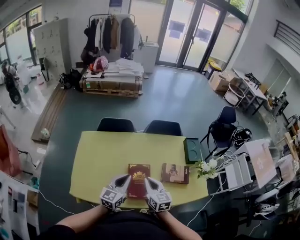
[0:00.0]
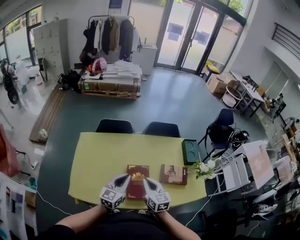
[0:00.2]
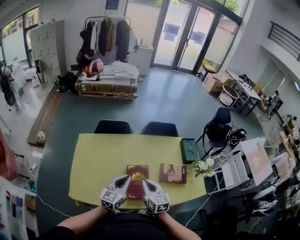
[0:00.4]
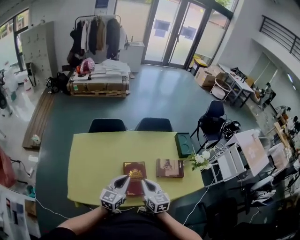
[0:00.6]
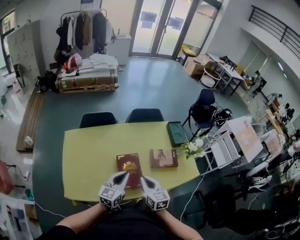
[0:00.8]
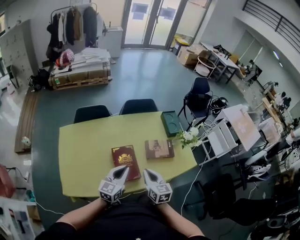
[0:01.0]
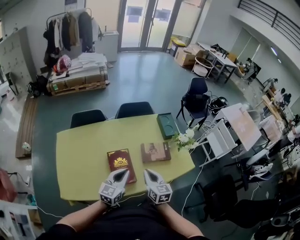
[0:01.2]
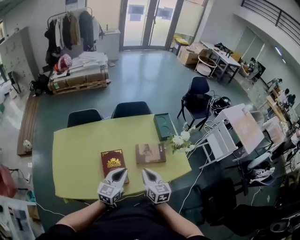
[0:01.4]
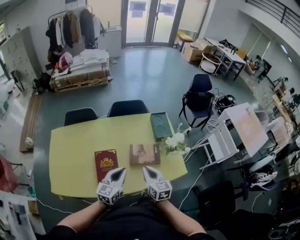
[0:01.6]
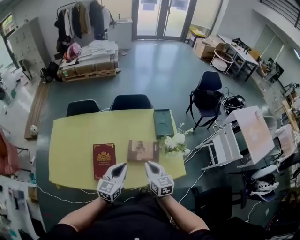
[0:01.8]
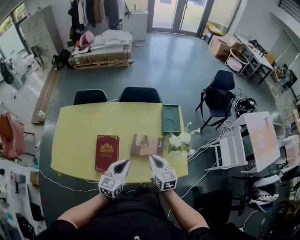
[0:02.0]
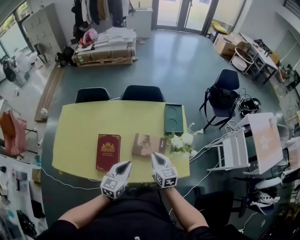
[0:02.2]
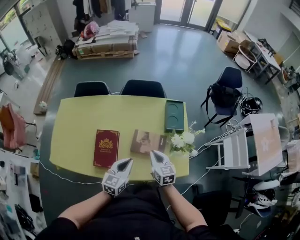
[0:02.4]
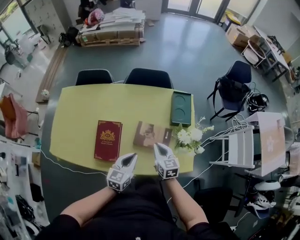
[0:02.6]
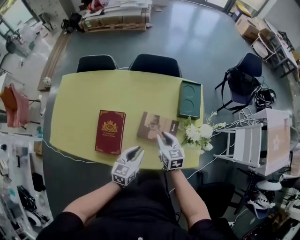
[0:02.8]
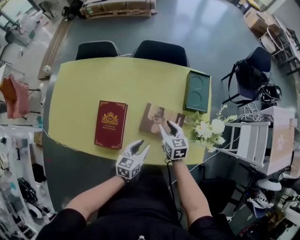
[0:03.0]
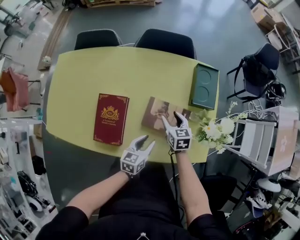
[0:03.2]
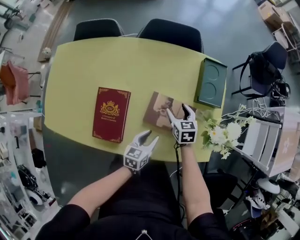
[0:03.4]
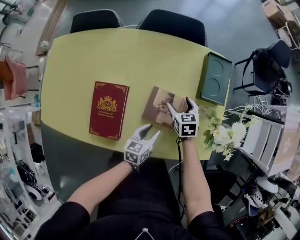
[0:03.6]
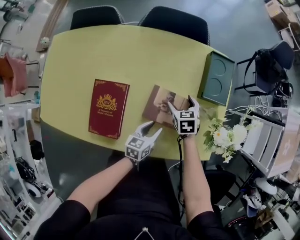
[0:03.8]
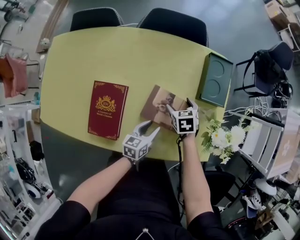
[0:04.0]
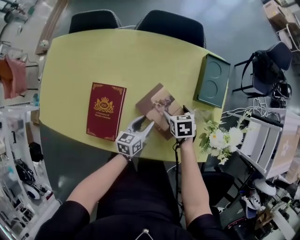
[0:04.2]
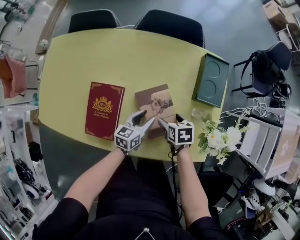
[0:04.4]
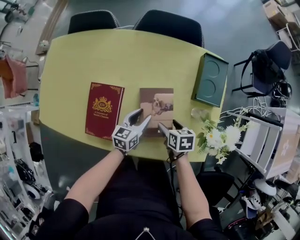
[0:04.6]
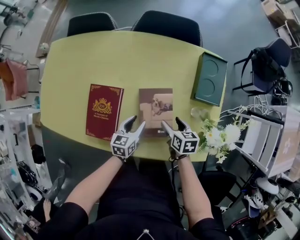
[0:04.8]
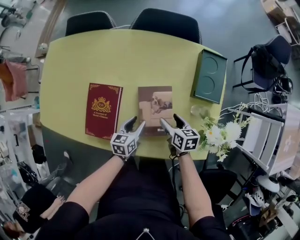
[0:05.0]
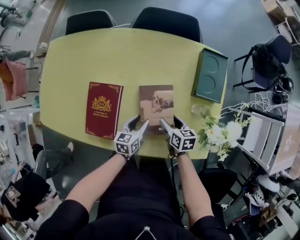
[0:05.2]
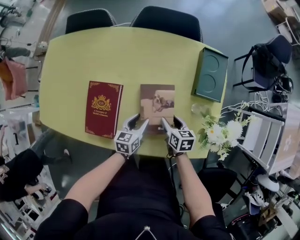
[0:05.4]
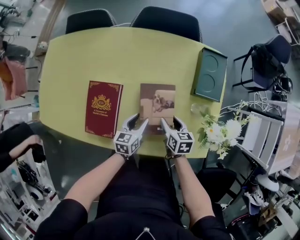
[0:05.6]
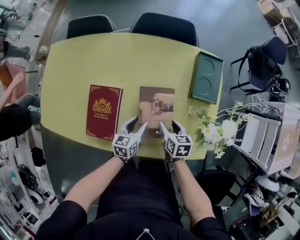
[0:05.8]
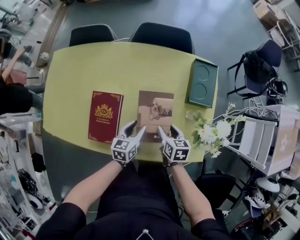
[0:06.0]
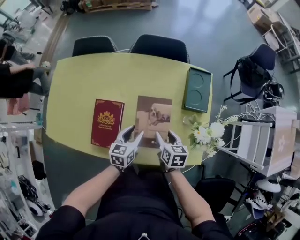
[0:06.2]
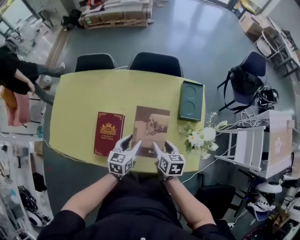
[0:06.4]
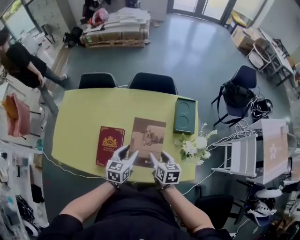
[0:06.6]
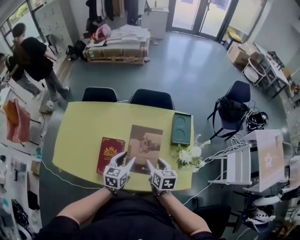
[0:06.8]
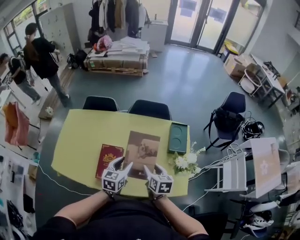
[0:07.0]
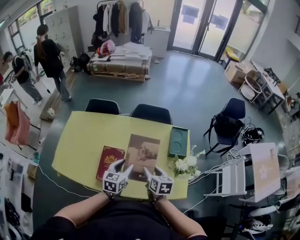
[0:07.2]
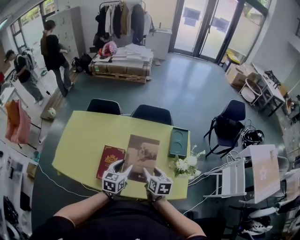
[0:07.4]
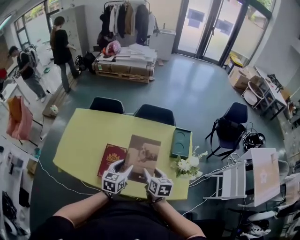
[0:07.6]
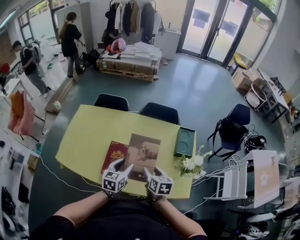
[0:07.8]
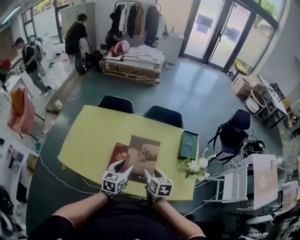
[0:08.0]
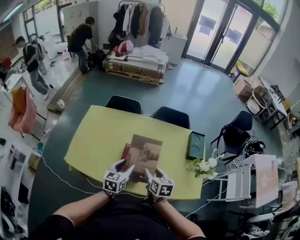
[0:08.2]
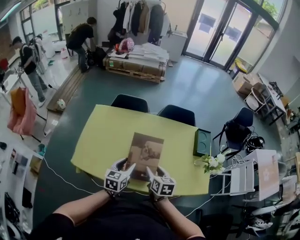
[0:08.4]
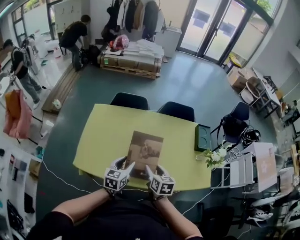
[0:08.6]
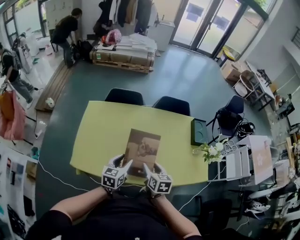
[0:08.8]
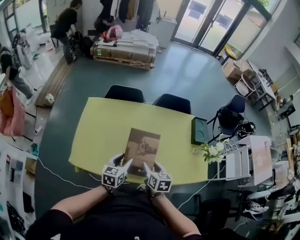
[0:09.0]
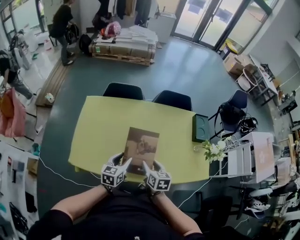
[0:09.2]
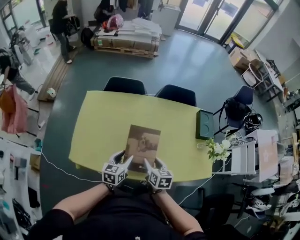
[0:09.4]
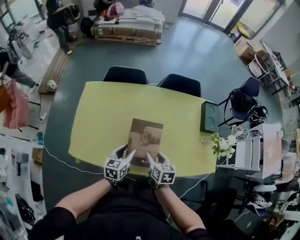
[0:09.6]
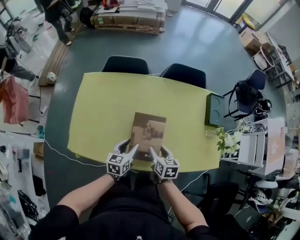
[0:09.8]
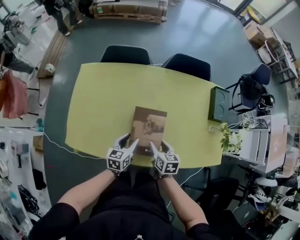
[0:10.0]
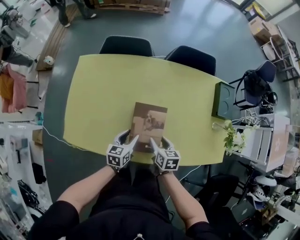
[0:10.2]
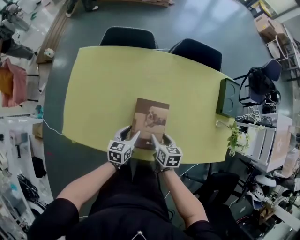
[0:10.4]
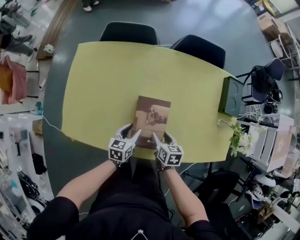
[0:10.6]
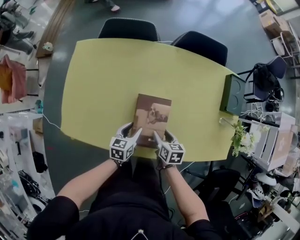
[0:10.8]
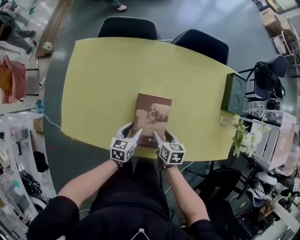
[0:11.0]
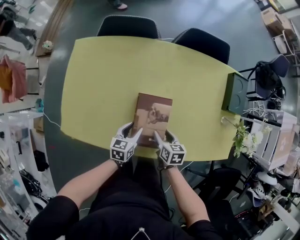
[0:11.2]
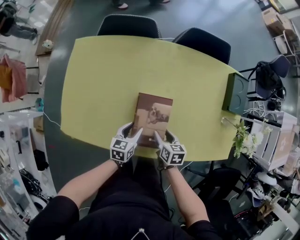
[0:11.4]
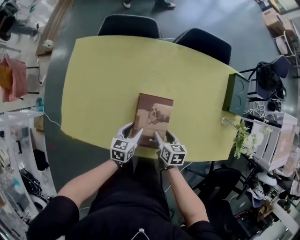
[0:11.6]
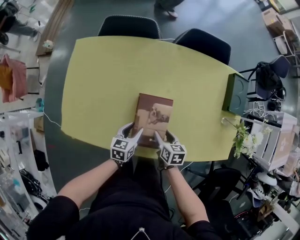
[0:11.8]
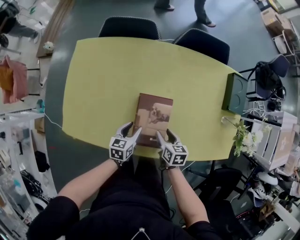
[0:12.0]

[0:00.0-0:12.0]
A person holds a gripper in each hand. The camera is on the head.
0:00.0 to 0:01.6: The grippers both shift to the right by some 25 cm.
0:01.6 to 0:03.0: The left gripper travels downward and to the right by approximately 25 cm, swivels roughly 30 degrees, and opens up. Meanwhile the right gripper is displaced downward and forward by some 25 cm, swivels about 20 degrees, and opens up.
0:03.0 to 0:04.4: The left gripper moves downward and forward, about 15 cm. Meanwhile the right gripper heads downward, covering roughly 10 cm, rotates about 30 degrees, and opens its fingers.
0:04.4 to 0:06.0: The left gripper moves roughly 5 cm, while the right gripper is displaced upward by approximately 5 cm, changes its angle by about 20 degrees, and closes its fingers.
0:06.0 to 0:07.6: The grippers both shift upward by some 25 cm.
0:07.6 to 0:09.0: The two grippers go some 30 cm to the left.
0:09.0 to 0:10.4: The two grippers go some 20 cm downward.
0:10.4 to 0:12.0: The grippers move only a little.

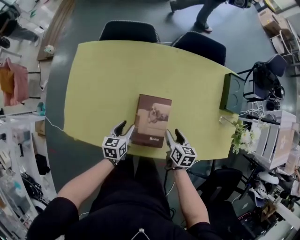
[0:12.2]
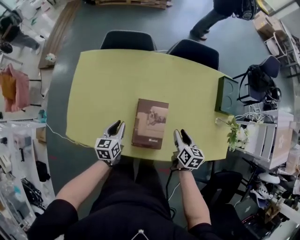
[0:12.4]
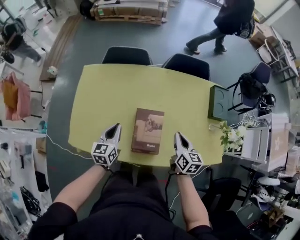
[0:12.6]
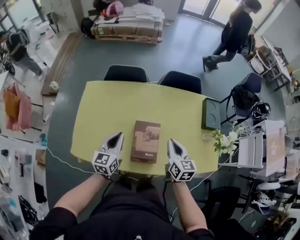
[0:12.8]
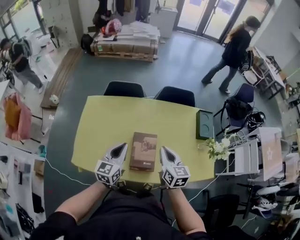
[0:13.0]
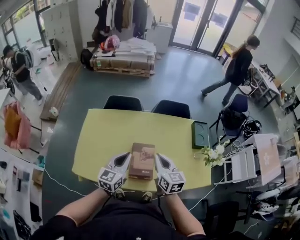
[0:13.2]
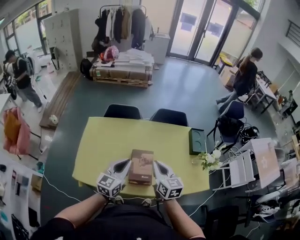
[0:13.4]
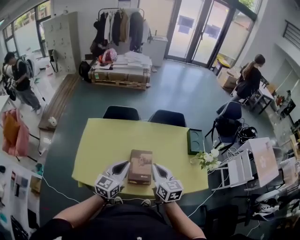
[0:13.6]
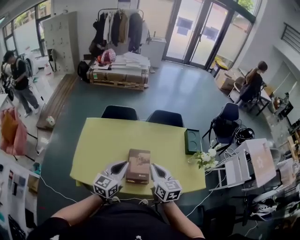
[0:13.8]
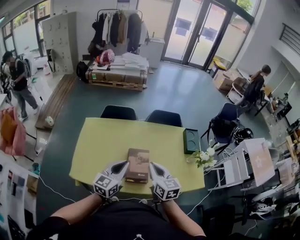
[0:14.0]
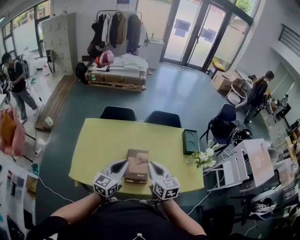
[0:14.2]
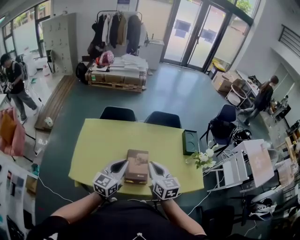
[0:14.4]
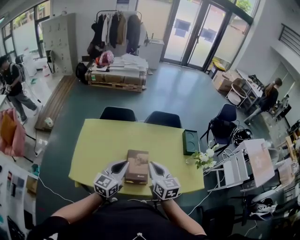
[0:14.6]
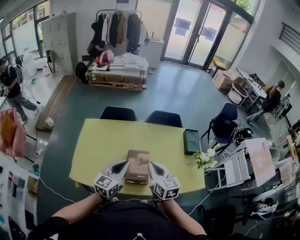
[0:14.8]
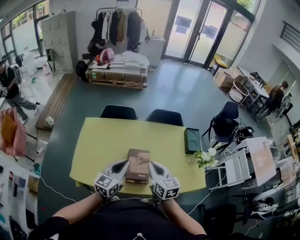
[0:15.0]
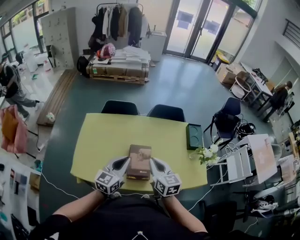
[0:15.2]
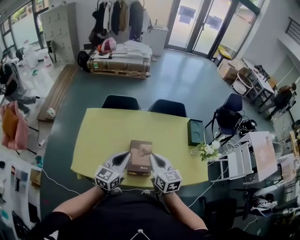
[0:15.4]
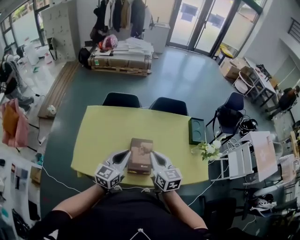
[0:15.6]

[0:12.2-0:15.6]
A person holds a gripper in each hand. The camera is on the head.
0:12.2 to 0:13.8: Both grippers move upward, roughly 35 cm. The right gripper swivels approximately 30 degrees, and closes up. Meanwhile the left gripper tilts its fingers about 30 degrees upward, and closes up.
0:13.8 to 0:15.6: The grippers move only a little.

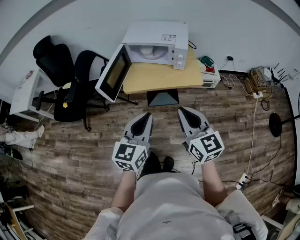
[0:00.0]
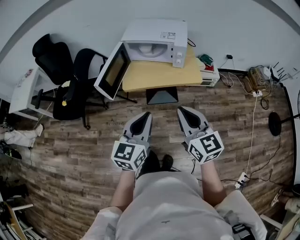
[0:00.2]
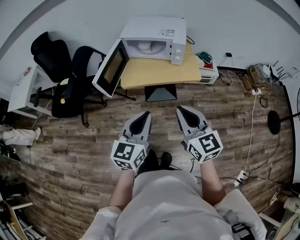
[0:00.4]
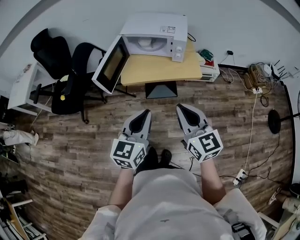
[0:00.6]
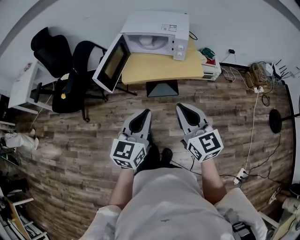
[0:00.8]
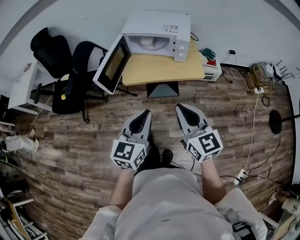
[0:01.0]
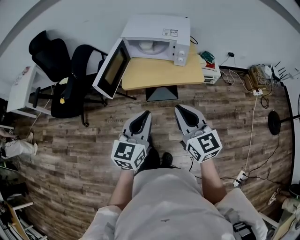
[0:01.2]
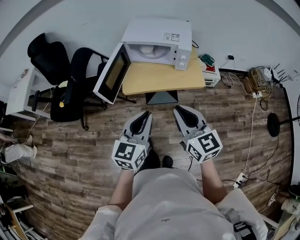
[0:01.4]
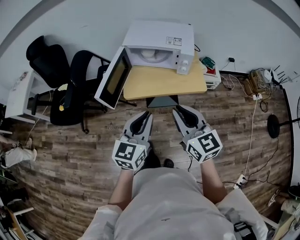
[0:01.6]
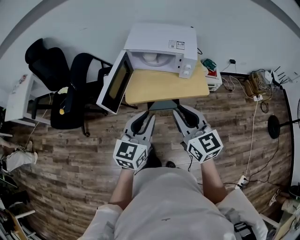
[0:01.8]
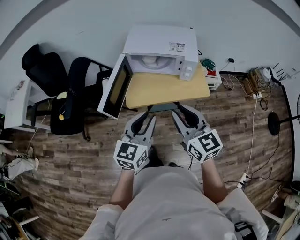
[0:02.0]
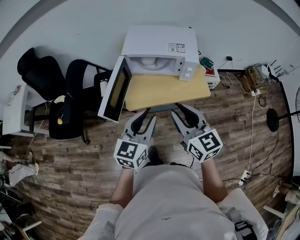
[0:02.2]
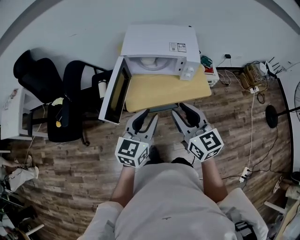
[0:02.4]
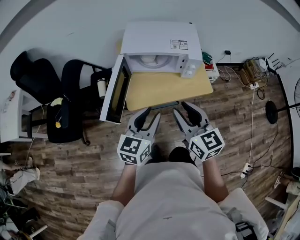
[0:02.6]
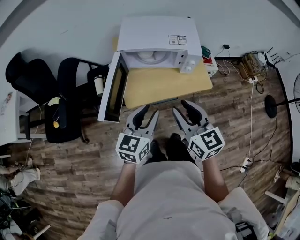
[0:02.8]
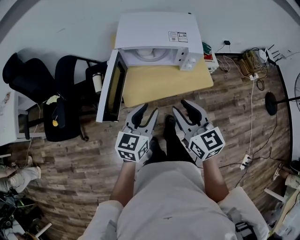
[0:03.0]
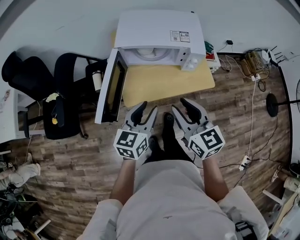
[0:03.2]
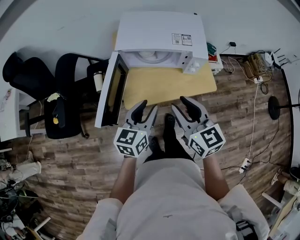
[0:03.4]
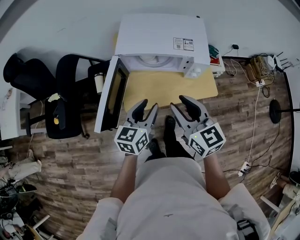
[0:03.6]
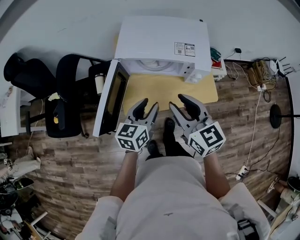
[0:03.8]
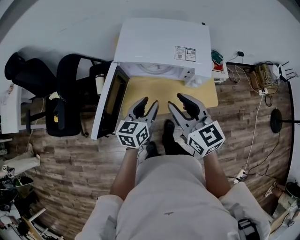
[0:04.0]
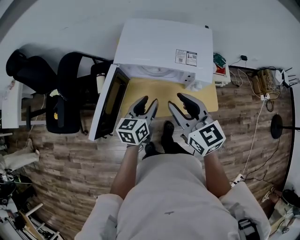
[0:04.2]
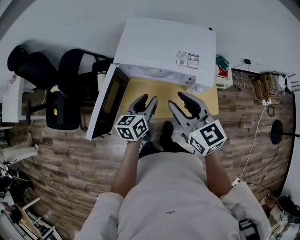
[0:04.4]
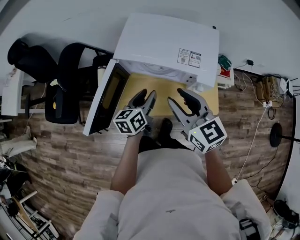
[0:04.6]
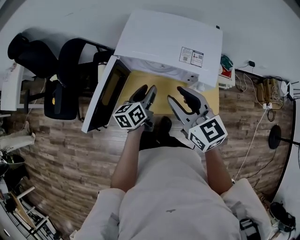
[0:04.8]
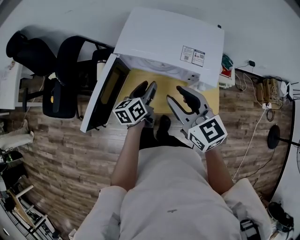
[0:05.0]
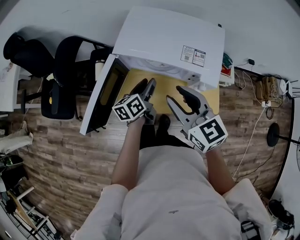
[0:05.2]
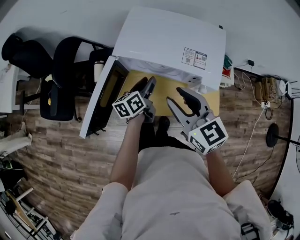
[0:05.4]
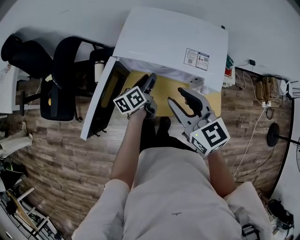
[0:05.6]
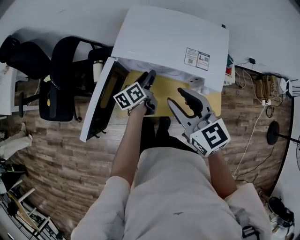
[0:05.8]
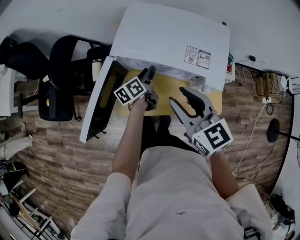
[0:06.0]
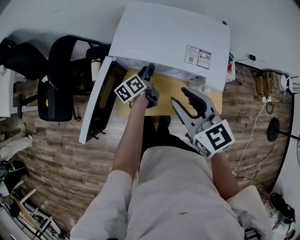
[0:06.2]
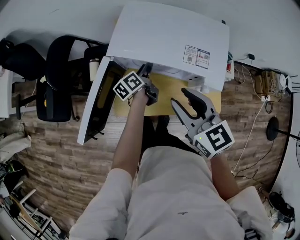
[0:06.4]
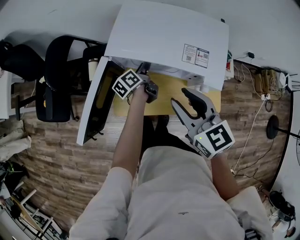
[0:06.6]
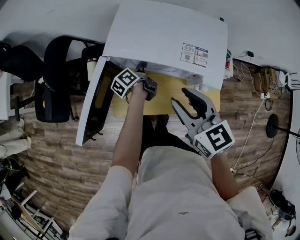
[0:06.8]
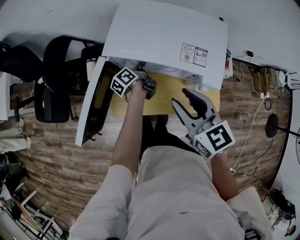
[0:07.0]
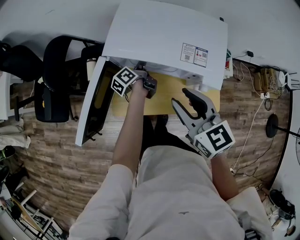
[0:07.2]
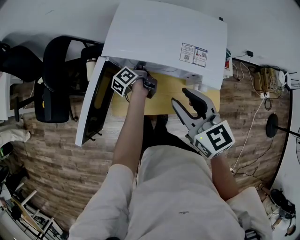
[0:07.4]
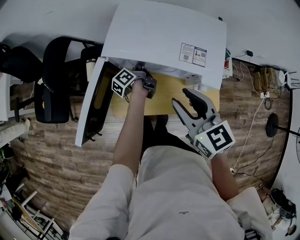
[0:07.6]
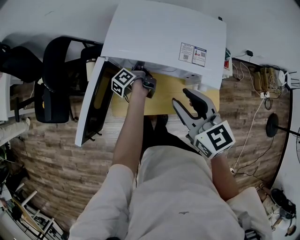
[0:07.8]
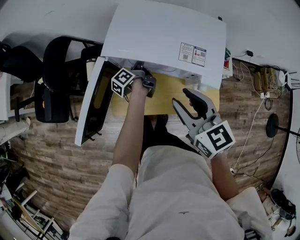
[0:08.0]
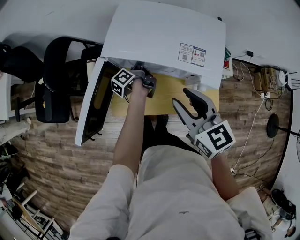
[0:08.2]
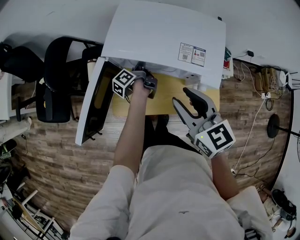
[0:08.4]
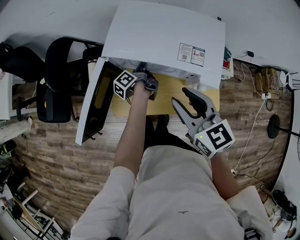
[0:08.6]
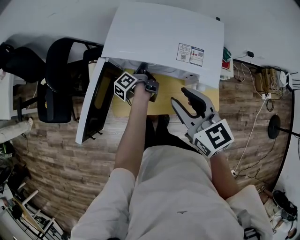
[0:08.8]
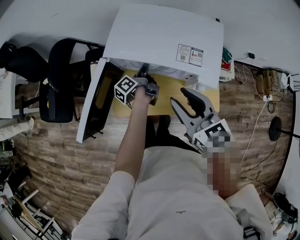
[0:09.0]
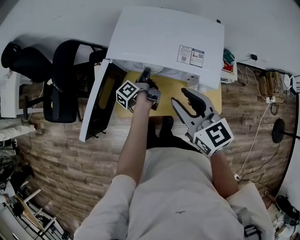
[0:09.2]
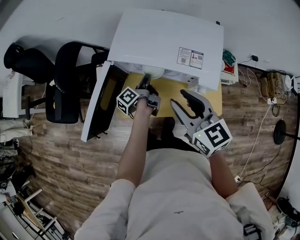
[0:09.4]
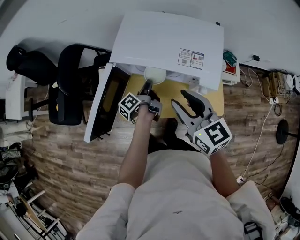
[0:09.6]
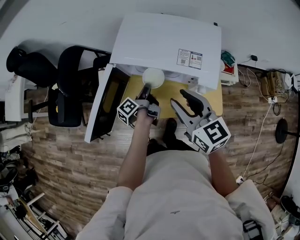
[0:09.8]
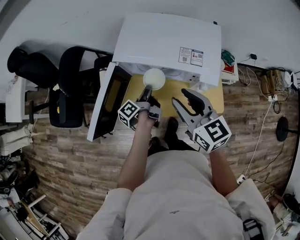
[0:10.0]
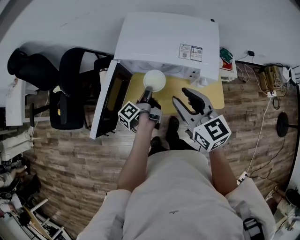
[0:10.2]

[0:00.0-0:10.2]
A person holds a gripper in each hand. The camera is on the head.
0:00.0 to 0:01.4: Both grippers move forward, about 5 cm.
0:01.4 to 0:03.0: The two grippers go approximately 20 cm forward and to the left. The left gripper opens up; the right gripper opens up.
0:03.0 to 0:04.4: The right gripper heads forward, covering some 20 cm. The left gripper shifts about 20 cm forward and downward, and rotates roughly 30 degrees.
0:04.4 to 0:05.8: The left gripper goes roughly 15 cm forward and downward, and swivels about 20 degrees.
0:05.8 to 0:07.2: The left gripper goes roughly 5 cm forward, and turns by some 30 degrees.
0:07.2 to 0:08.8: The left gripper closes its fingers.
0:08.8 to 0:10.2: The left gripper moves backward and upward, approximately 15 cm.
